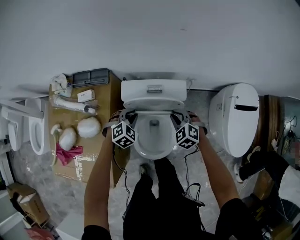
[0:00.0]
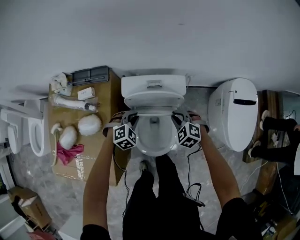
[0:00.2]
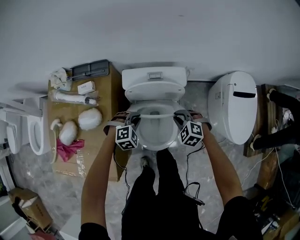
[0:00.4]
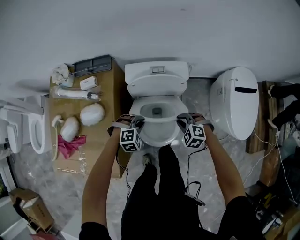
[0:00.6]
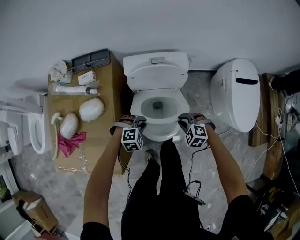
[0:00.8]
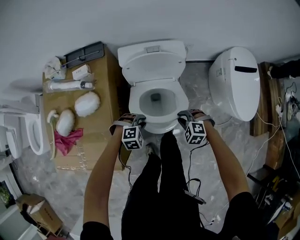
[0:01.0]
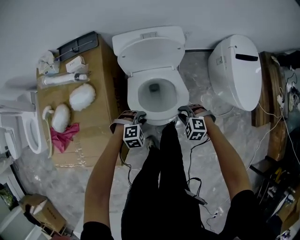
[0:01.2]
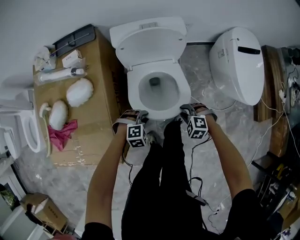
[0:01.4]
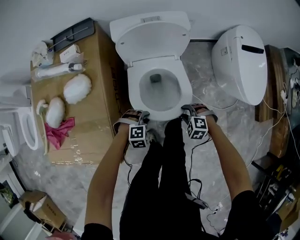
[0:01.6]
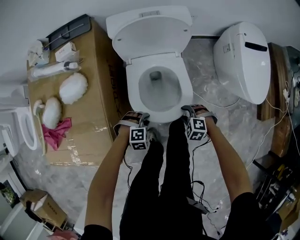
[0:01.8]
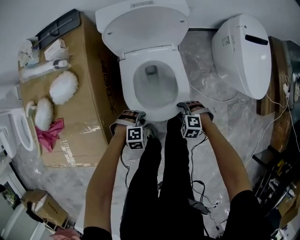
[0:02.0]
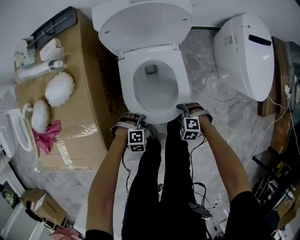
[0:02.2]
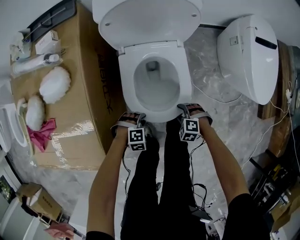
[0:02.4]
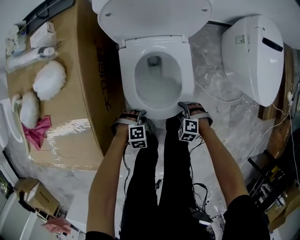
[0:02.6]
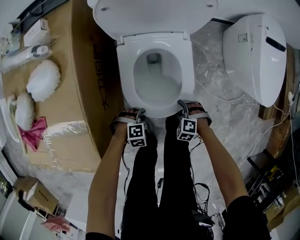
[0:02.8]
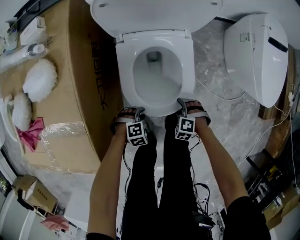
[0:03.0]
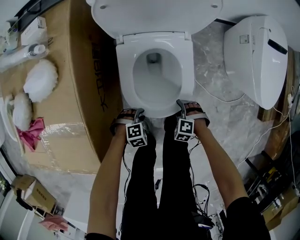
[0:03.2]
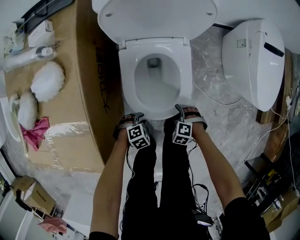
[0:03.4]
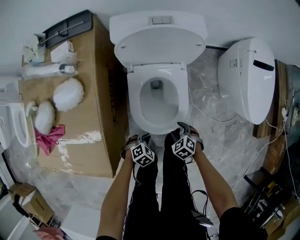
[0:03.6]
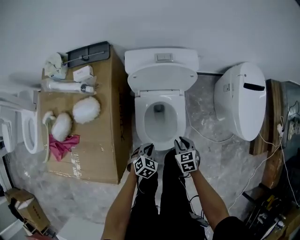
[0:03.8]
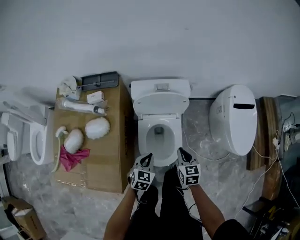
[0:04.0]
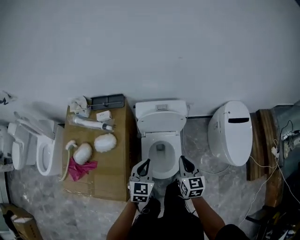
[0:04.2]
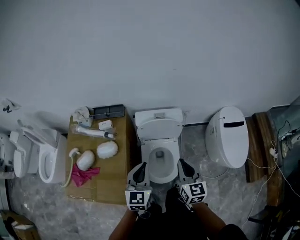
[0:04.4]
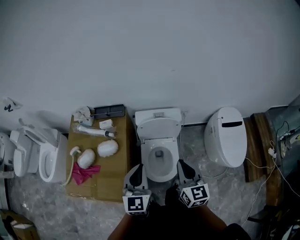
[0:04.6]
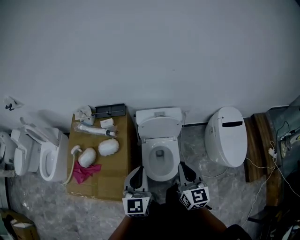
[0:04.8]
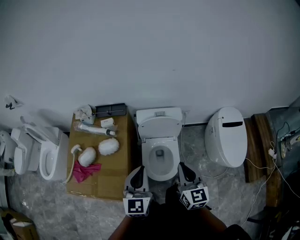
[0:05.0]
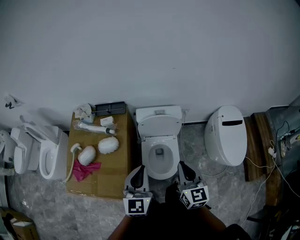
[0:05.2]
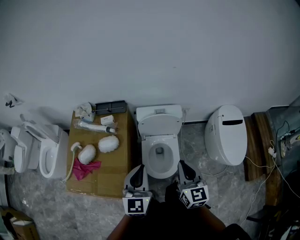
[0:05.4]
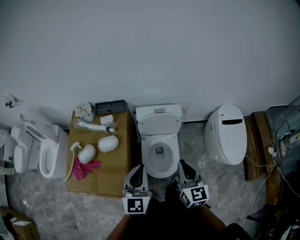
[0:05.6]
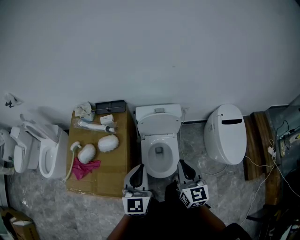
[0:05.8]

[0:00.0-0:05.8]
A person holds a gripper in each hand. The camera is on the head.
0:00.0 to 0:01.4: Both grippers move backward and downward, some 35 cm. The left gripper changes its angle by roughly 30 degrees.
0:01.4 to 0:02.8: Both grippers travel together downward, about 20 cm. The right gripper opens.
0:02.8 to 0:04.4: Both grippers travel together upward, some 60 cm. The left gripper tilts its fingers roughly 60 degrees upward, and closes. Meanwhile the right gripper tilts its fingers roughly 60 degrees upward, and closes its fingers.
0:04.4 to 0:05.8: The grippers both shift backward and upward by some 10 cm.

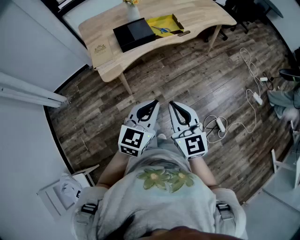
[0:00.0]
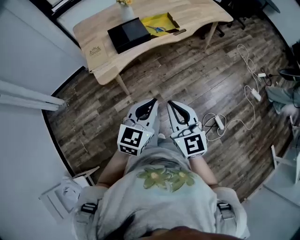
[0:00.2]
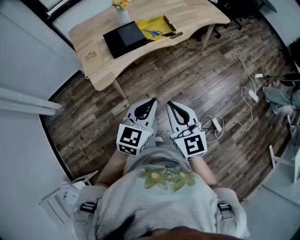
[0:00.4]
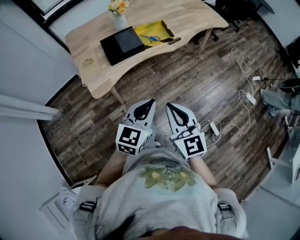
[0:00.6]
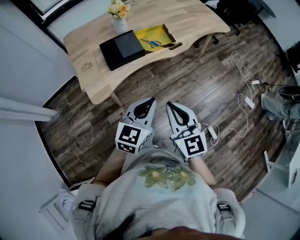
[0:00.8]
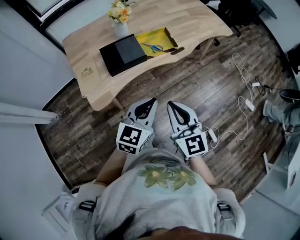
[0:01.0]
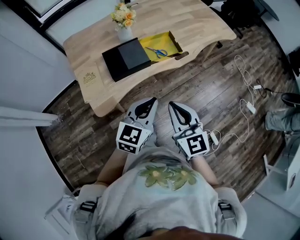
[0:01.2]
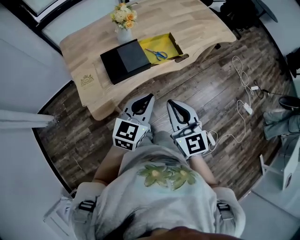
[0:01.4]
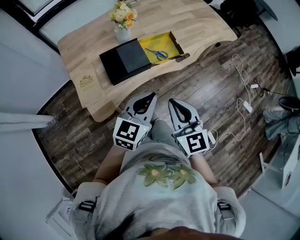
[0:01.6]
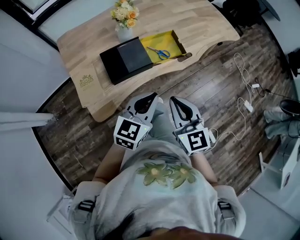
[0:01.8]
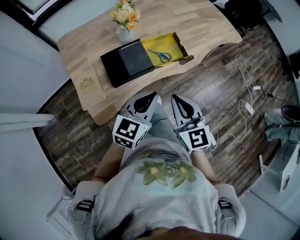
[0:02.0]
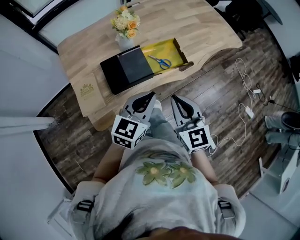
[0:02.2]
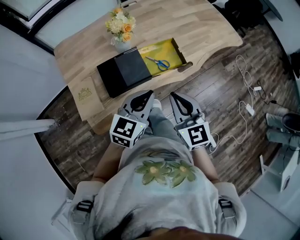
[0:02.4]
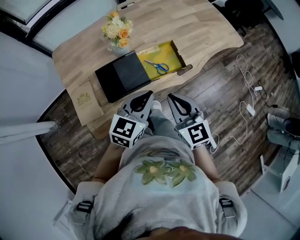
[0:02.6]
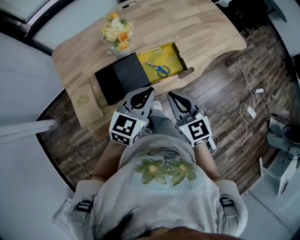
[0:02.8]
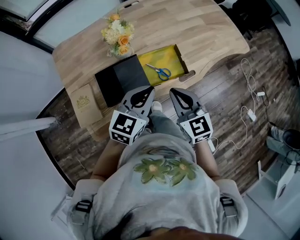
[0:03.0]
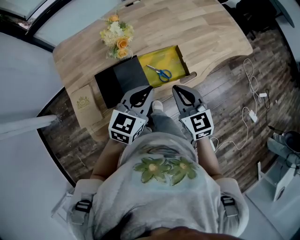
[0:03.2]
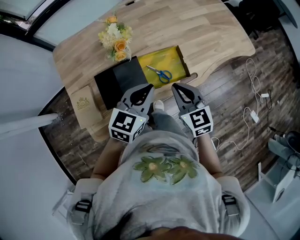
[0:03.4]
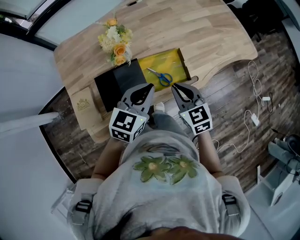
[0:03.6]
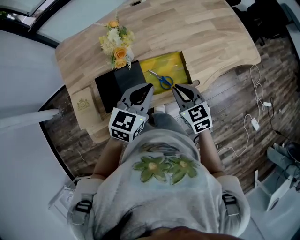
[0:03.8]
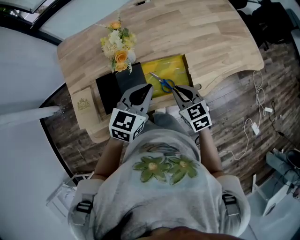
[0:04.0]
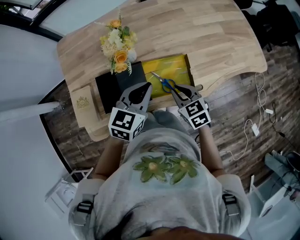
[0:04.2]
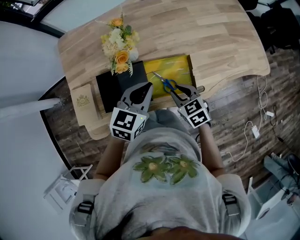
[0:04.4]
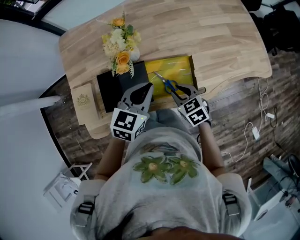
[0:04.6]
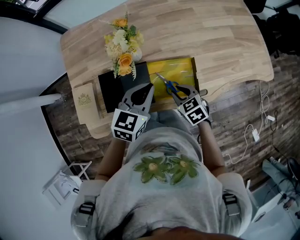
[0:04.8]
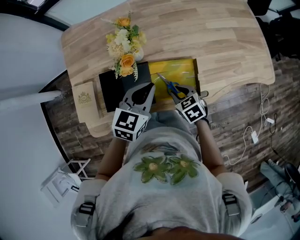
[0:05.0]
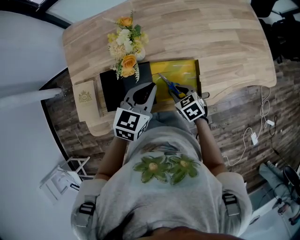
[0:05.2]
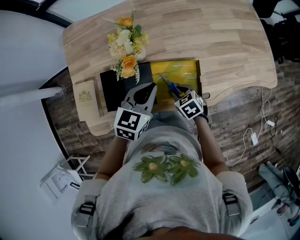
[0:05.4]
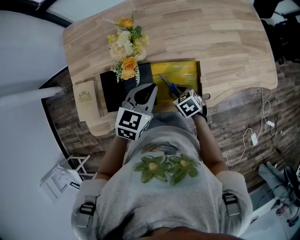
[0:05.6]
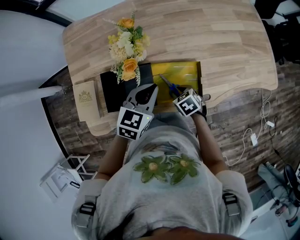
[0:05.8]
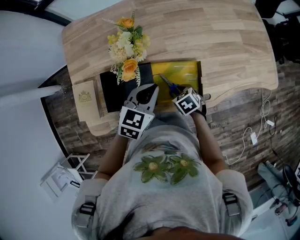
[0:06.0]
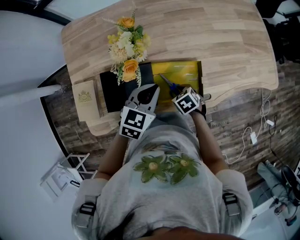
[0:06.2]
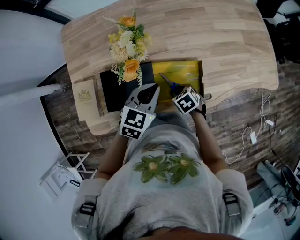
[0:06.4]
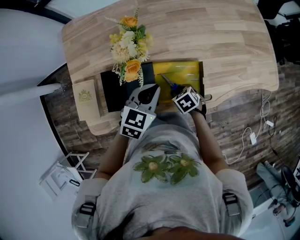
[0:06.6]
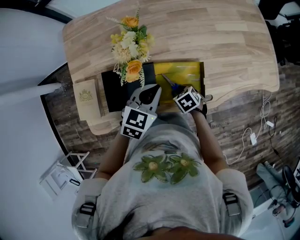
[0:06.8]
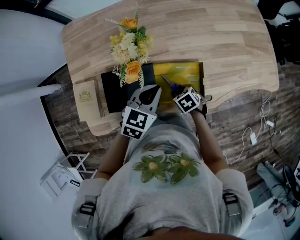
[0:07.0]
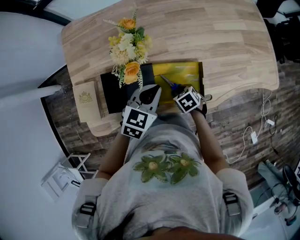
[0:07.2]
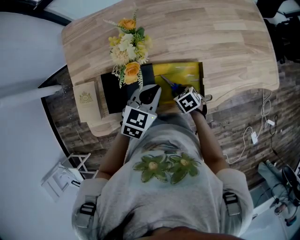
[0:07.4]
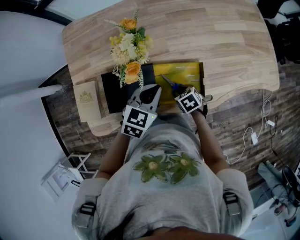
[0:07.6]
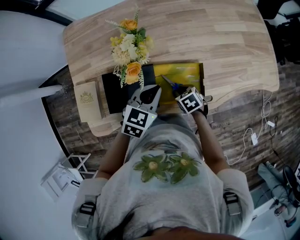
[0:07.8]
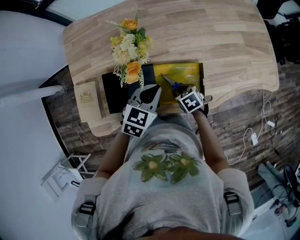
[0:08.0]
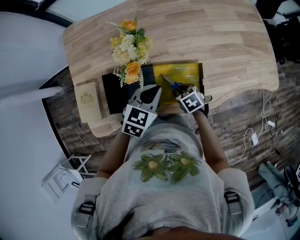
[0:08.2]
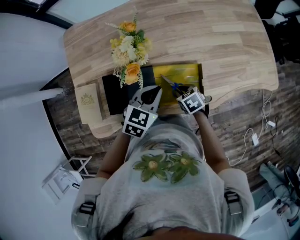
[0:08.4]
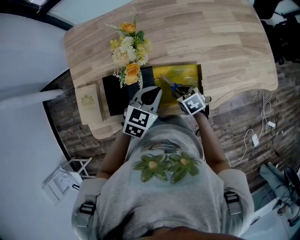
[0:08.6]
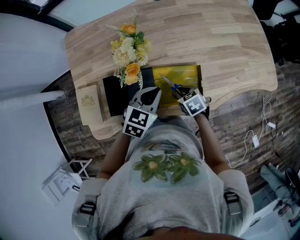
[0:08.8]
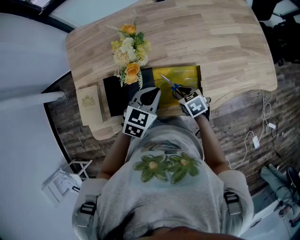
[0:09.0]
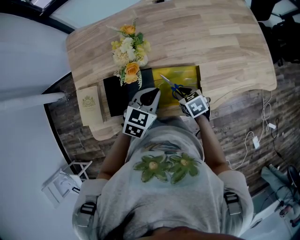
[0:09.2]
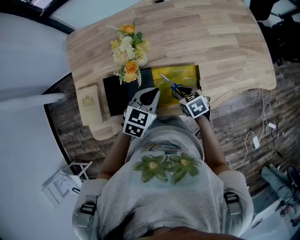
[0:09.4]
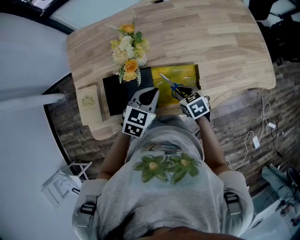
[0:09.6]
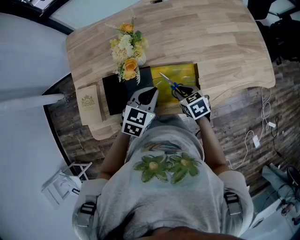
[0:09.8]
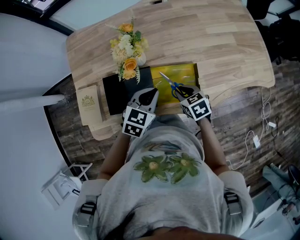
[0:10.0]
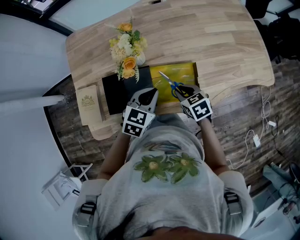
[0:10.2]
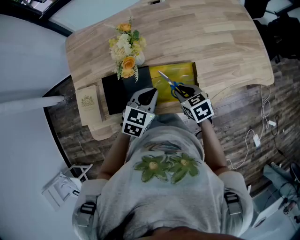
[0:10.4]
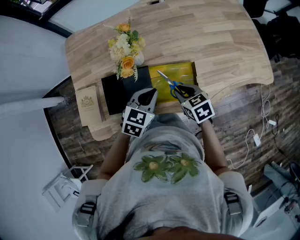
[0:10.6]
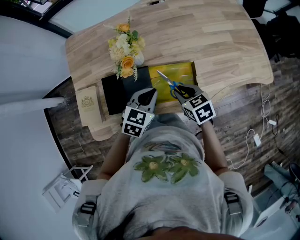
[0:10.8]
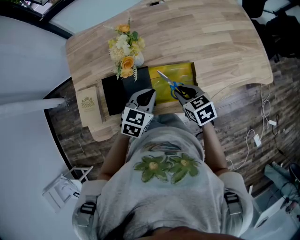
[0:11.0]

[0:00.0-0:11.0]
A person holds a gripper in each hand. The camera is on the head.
0:00.0 to 0:01.6: The two grippers go about 30 cm forward.
0:01.6 to 0:03.2: The two grippers go about 25 cm forward.
0:03.2 to 0:04.8: The left gripper moves forward and downward, approximately 10 cm. The right gripper heads downward and forward, covering roughly 20 cm, and turns by approximately 40 degrees.
0:04.8 to 0:06.2: The right gripper shifts roughly 10 cm downward.
0:06.2 to 0:07.8: Both grippers stay put.
0:07.8 to 0:09.4: The right gripper moves upward, approximately 5 cm.
0:09.4 to 0:11.0: The right gripper is displaced upward by some 10 cm.

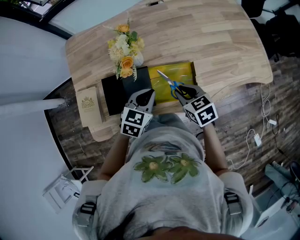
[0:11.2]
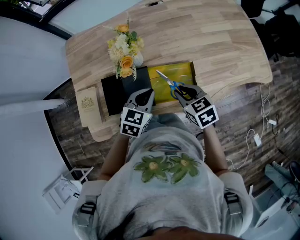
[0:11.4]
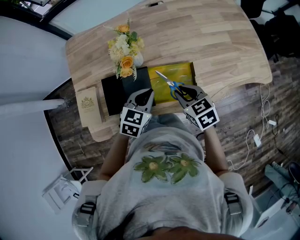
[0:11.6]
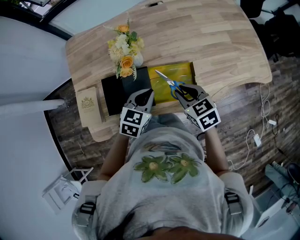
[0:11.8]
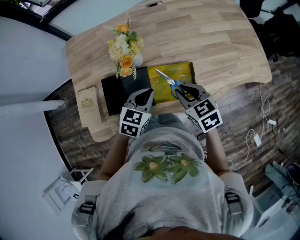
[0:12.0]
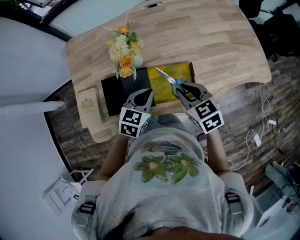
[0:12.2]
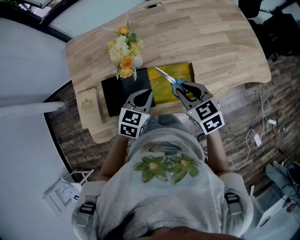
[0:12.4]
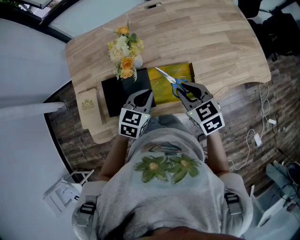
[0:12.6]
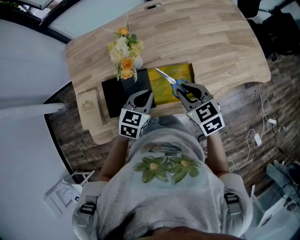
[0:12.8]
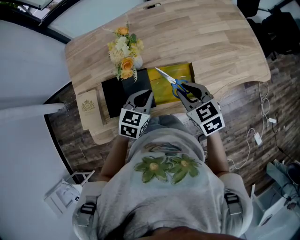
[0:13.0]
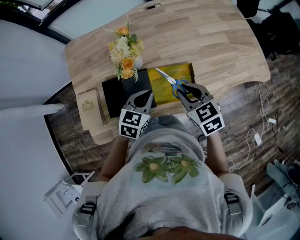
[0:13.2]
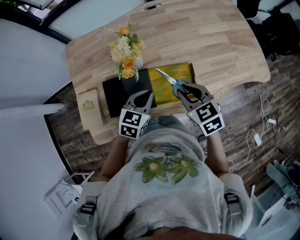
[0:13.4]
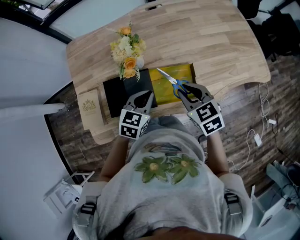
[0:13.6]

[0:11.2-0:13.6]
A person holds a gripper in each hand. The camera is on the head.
0:11.2 to 0:12.4: The right gripper is displaced upward by approximately 5 cm.
0:12.4 to 0:13.6: The two grippers keep their place.

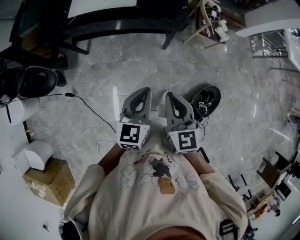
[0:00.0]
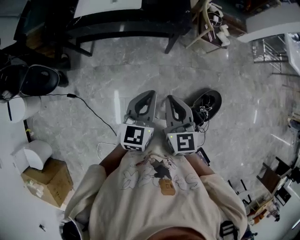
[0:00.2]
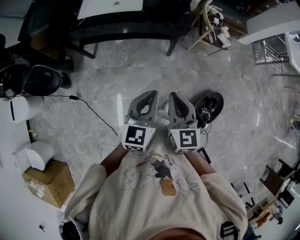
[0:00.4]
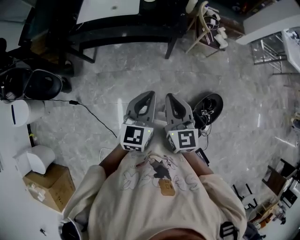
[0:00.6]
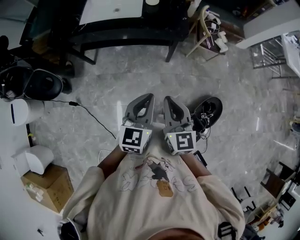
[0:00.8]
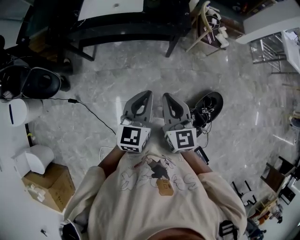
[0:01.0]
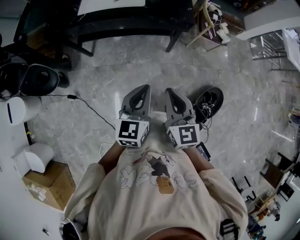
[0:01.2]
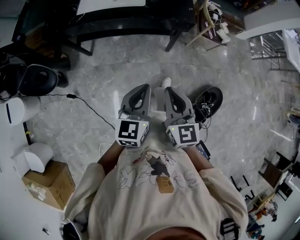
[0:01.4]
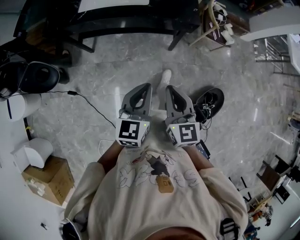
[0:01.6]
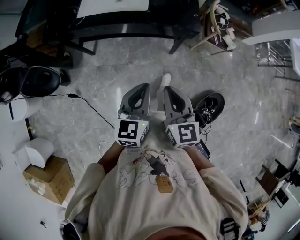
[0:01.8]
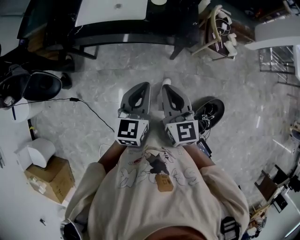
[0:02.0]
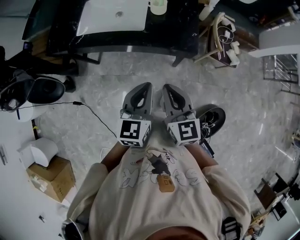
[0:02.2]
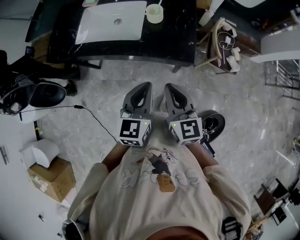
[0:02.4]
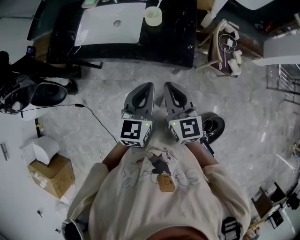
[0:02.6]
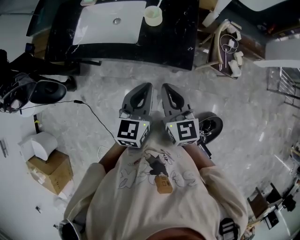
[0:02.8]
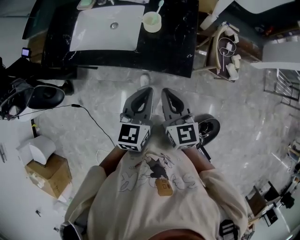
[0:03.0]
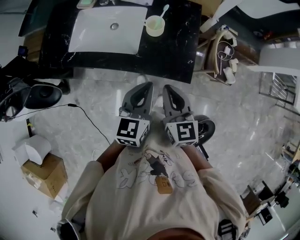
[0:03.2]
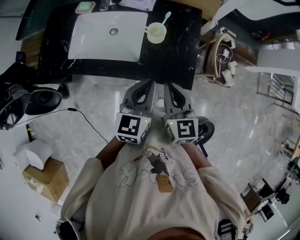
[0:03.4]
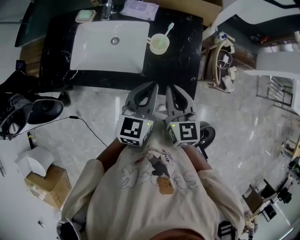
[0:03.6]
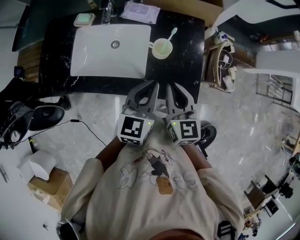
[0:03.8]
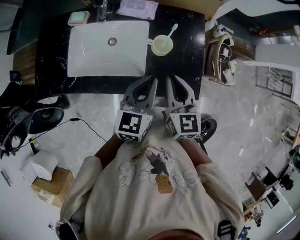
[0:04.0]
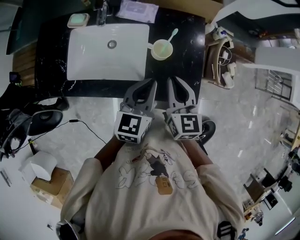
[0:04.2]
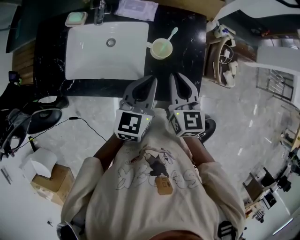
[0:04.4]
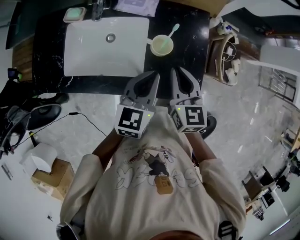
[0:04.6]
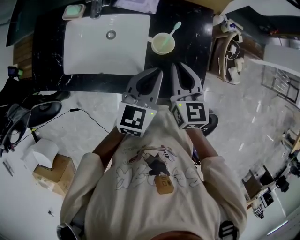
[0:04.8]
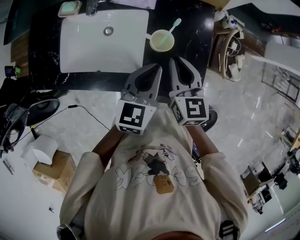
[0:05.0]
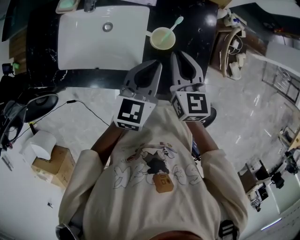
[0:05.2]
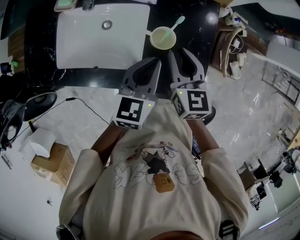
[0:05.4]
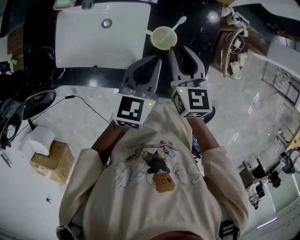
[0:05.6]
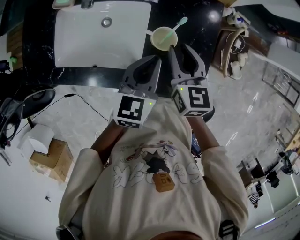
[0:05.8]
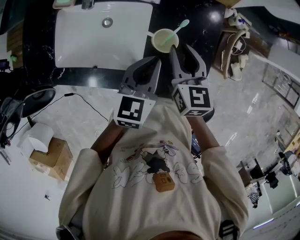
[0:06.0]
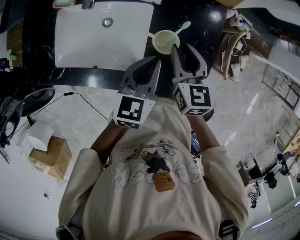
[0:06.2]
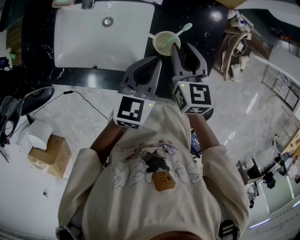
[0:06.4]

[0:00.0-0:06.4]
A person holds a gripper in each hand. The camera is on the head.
0:00.0 to 0:01.6: The grippers both shift to the left by about 5 cm.
0:01.6 to 0:03.2: Both grippers travel together forward, some 35 cm.
0:03.2 to 0:04.8: The two grippers go roughly 20 cm forward.
0:04.8 to 0:06.4: The two grippers go about 10 cm forward and downward.
